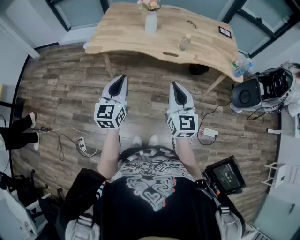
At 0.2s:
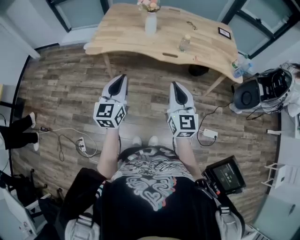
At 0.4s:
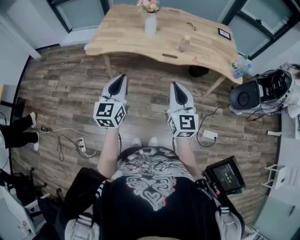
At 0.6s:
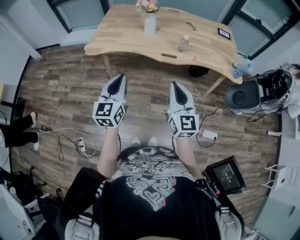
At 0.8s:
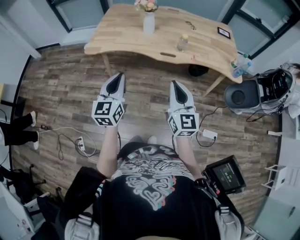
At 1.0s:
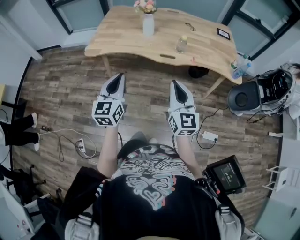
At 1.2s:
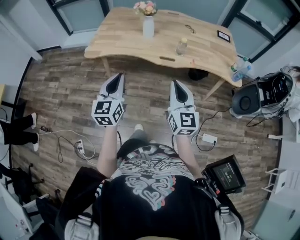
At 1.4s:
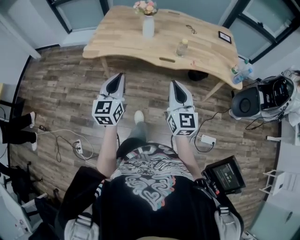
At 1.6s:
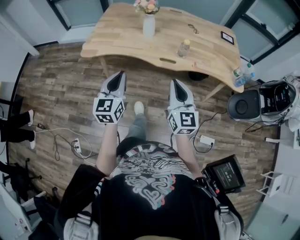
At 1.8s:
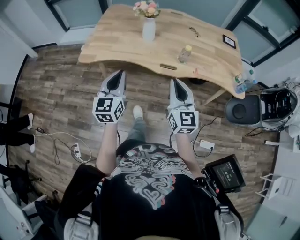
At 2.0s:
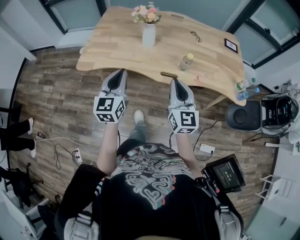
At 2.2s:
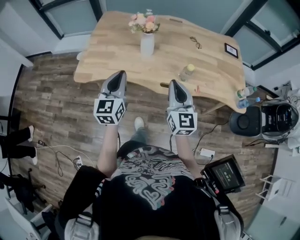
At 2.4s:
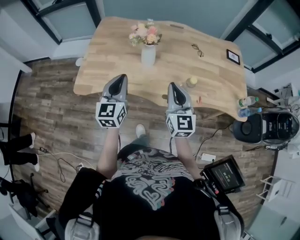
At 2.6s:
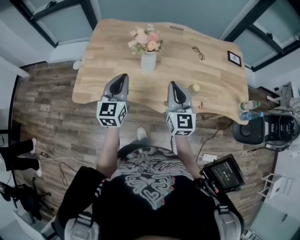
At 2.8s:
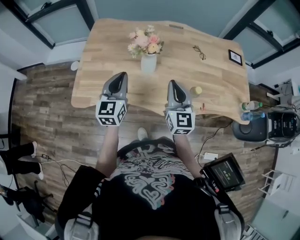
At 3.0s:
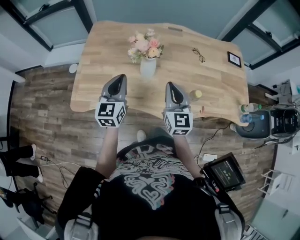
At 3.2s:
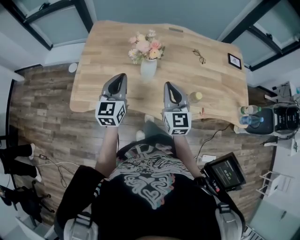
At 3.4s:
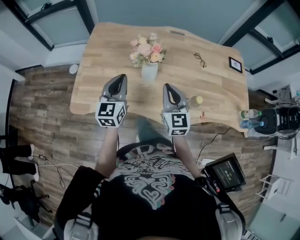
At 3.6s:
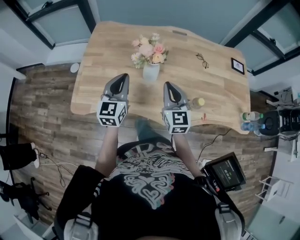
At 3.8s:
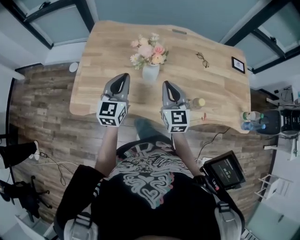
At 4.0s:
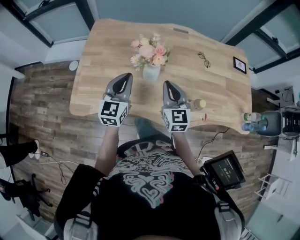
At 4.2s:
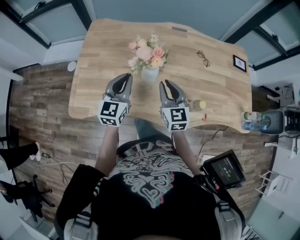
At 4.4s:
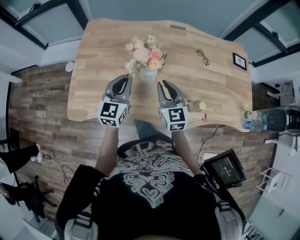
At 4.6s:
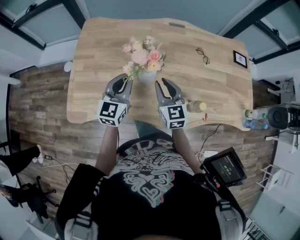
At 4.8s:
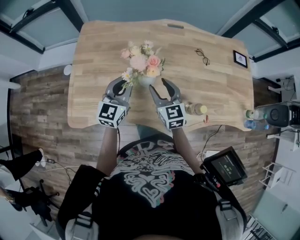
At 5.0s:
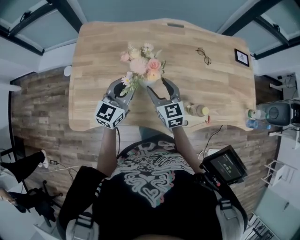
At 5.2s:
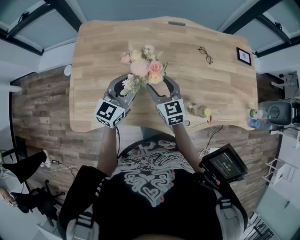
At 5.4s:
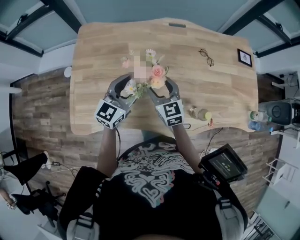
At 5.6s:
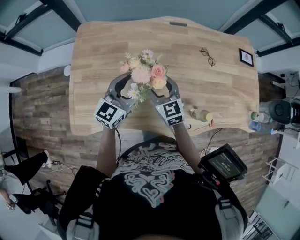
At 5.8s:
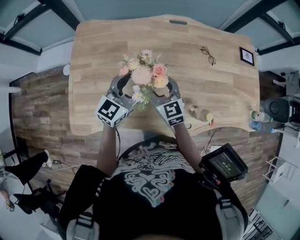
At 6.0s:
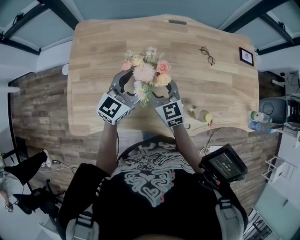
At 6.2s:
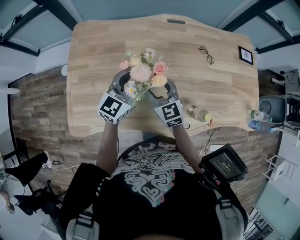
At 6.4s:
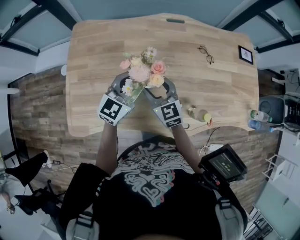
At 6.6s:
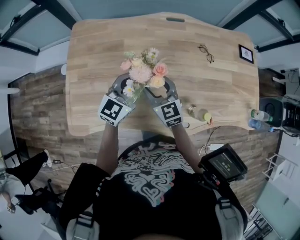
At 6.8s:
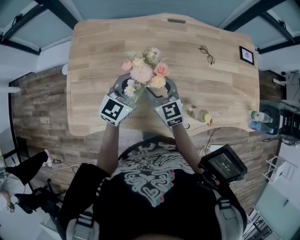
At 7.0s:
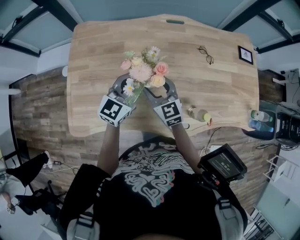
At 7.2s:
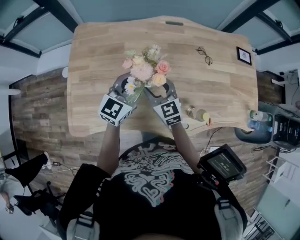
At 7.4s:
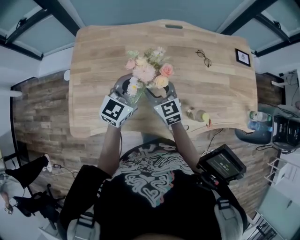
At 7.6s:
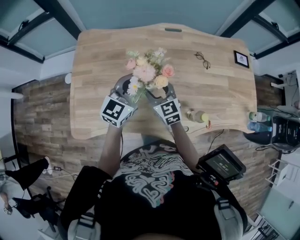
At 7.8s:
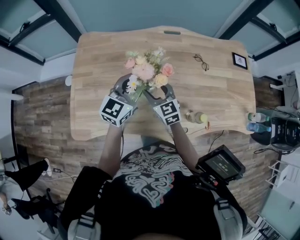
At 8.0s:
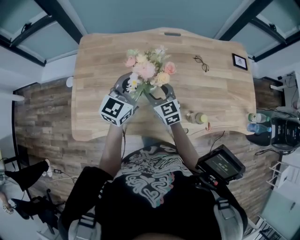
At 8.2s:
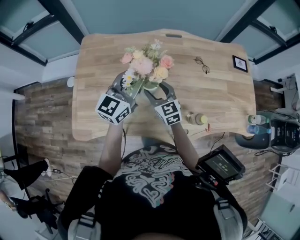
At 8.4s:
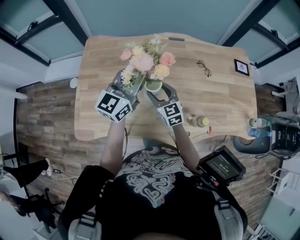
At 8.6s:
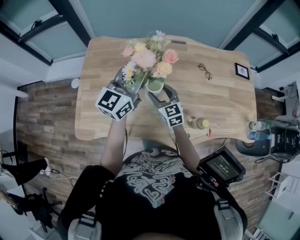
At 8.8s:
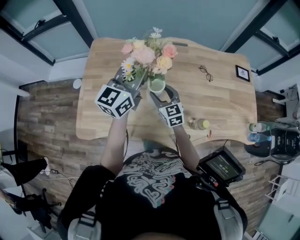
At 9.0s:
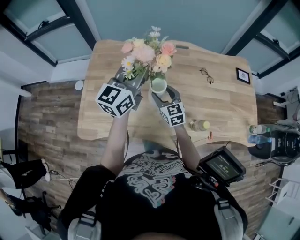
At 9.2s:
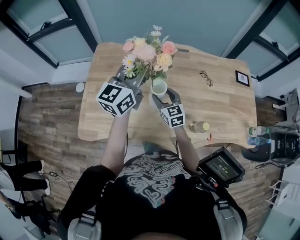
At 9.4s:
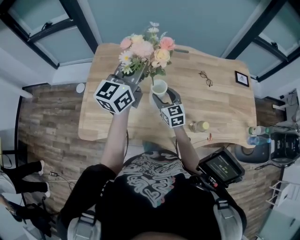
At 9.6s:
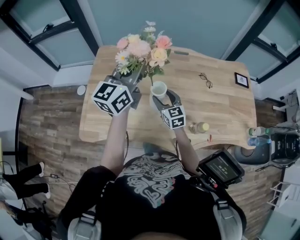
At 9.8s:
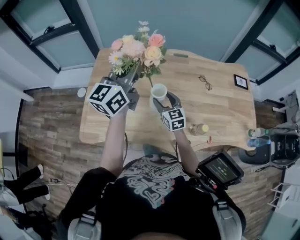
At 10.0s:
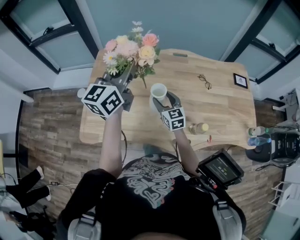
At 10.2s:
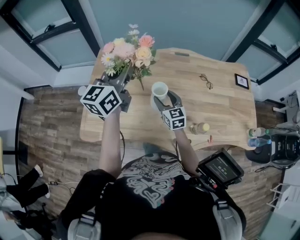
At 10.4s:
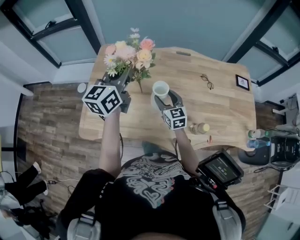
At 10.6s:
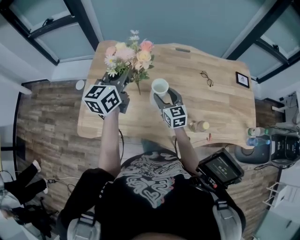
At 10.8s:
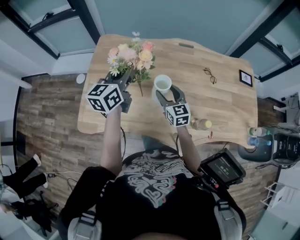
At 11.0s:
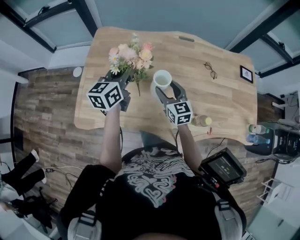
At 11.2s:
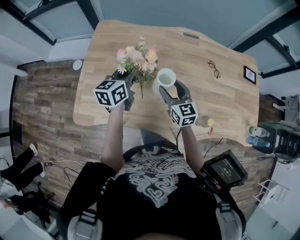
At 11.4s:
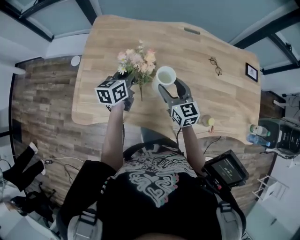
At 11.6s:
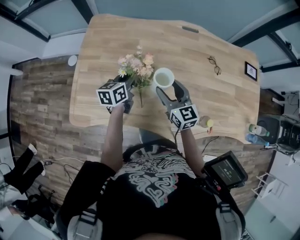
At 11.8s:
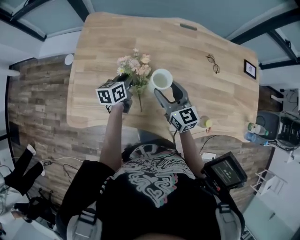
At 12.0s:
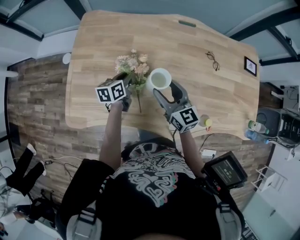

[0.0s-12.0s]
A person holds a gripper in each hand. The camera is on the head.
0.0s to 1.6s: Both grippers travel together forward, approximately 10 cm.
1.6s to 3.0s: The pair of grippers is taken forward, about 40 cm.
3.0s to 4.4s: The right gripper is displaced forward and downward by about 10 cm, while the left gripper goes about 10 cm forward.
4.4s to 6.0s: The right gripper heads forward and to the left, covering about 10 cm, and opens. Meanwhile the left gripper heads forward and to the right, covering about 10 cm, rotates some 30 degrees, and opens up.
6.0s to 7.6s: The left gripper closes.
7.6s to 9.0s: The left gripper travels upward by some 15 cm.
9.0s to 10.4s: The left gripper travels to the left by some 5 cm.
10.4s to 12.0s: The left gripper heads downward, covering approximately 35 cm, and tilts its fingers approximately 30 degrees downward.

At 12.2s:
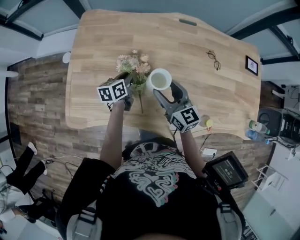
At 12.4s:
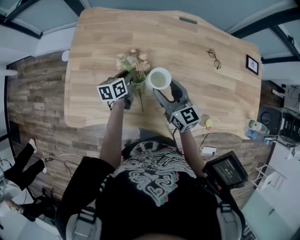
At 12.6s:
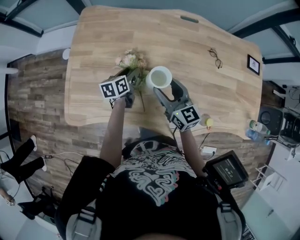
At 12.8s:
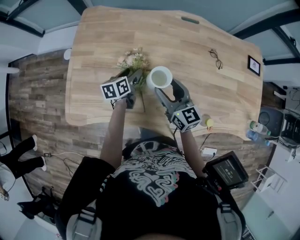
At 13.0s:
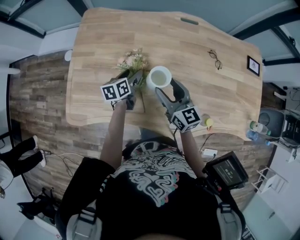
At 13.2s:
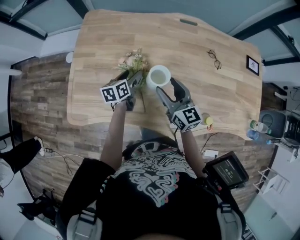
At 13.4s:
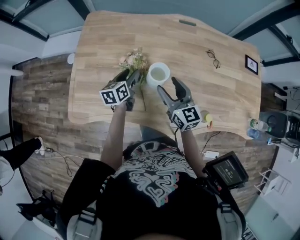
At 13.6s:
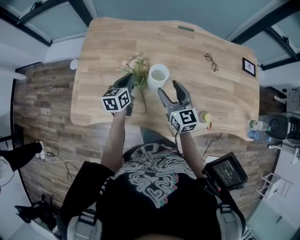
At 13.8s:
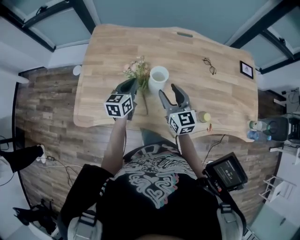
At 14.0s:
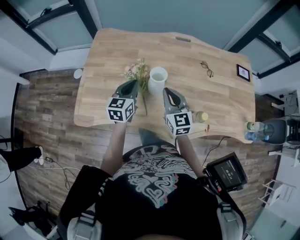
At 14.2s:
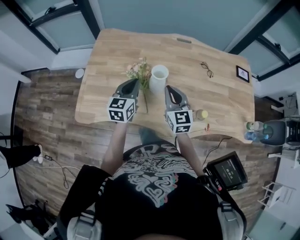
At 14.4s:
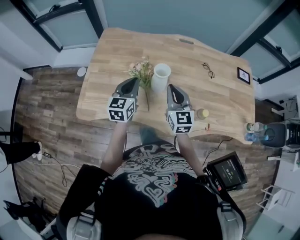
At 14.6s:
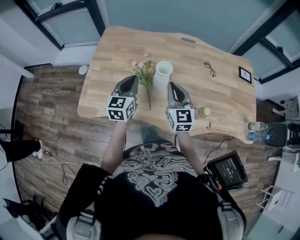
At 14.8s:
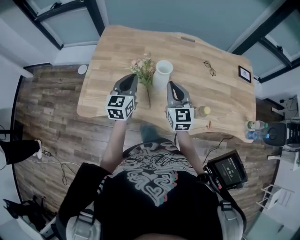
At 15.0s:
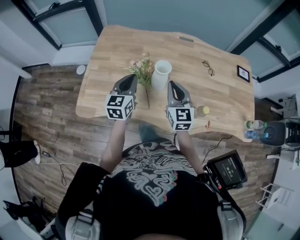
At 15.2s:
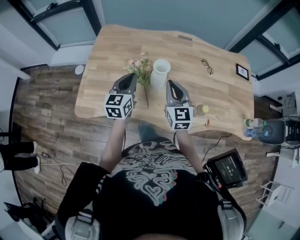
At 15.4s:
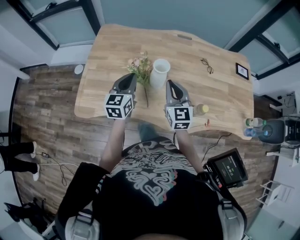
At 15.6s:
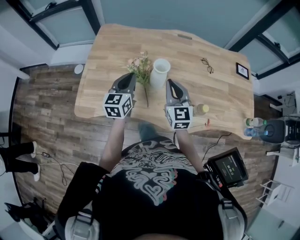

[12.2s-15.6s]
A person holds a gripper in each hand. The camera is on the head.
12.2s to 13.8s: The right gripper heads backward, covering some 5 cm. Meanwhile the left gripper shifts about 15 cm upward and backward, changes its angle by roughly 20 degrees, and opens, then closes again.
13.8s to 15.6s: The right gripper travels upward by approximately 5 cm, and closes up, while the left gripper is displaced upward and backward by some 10 cm.

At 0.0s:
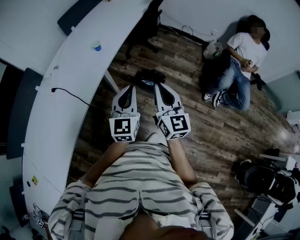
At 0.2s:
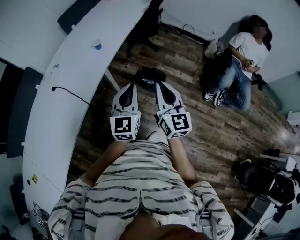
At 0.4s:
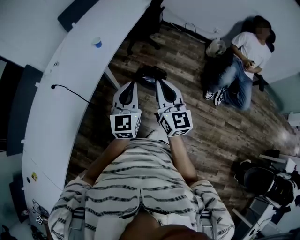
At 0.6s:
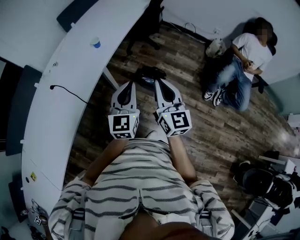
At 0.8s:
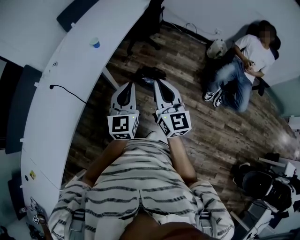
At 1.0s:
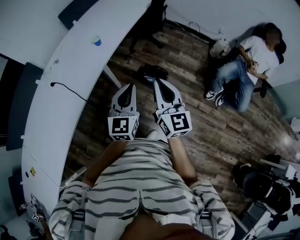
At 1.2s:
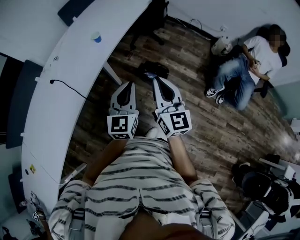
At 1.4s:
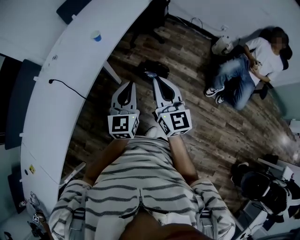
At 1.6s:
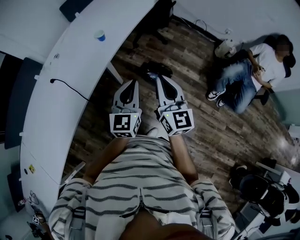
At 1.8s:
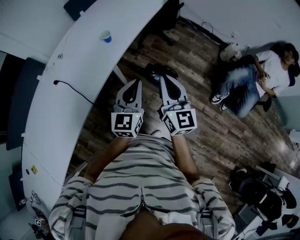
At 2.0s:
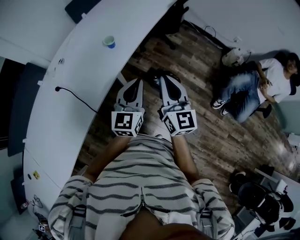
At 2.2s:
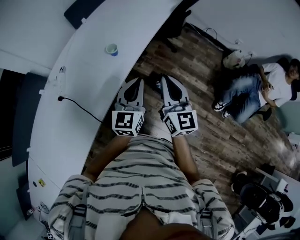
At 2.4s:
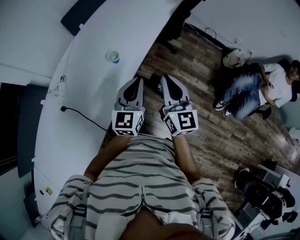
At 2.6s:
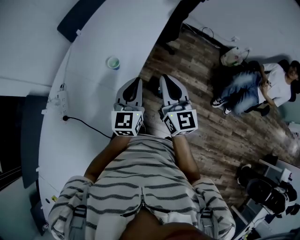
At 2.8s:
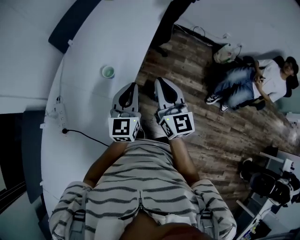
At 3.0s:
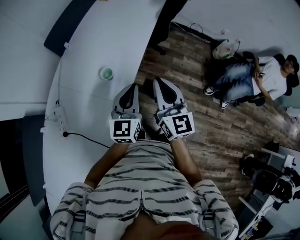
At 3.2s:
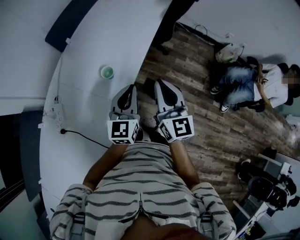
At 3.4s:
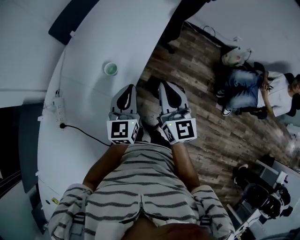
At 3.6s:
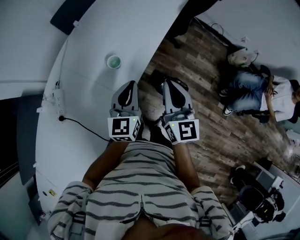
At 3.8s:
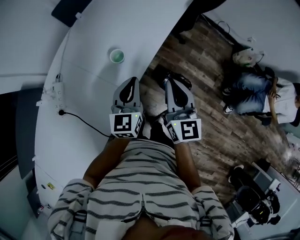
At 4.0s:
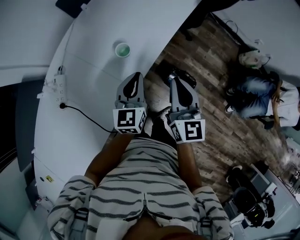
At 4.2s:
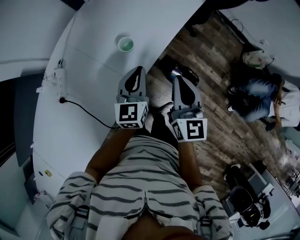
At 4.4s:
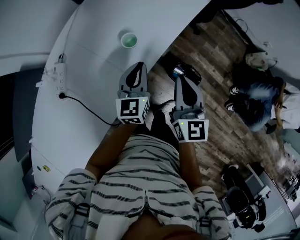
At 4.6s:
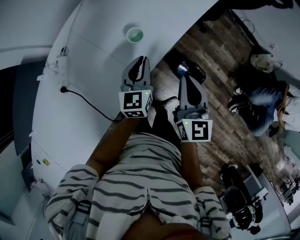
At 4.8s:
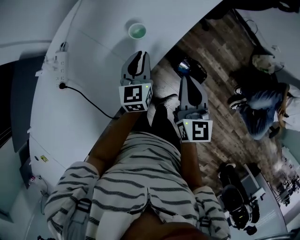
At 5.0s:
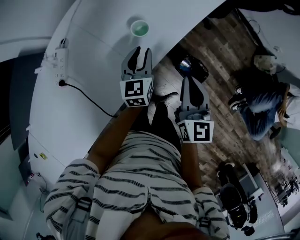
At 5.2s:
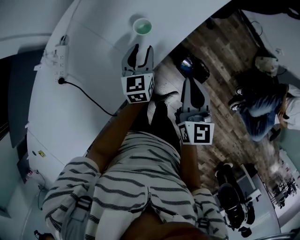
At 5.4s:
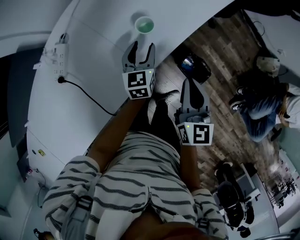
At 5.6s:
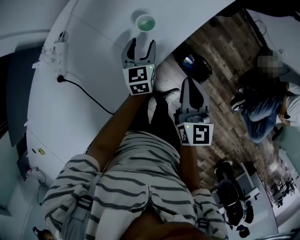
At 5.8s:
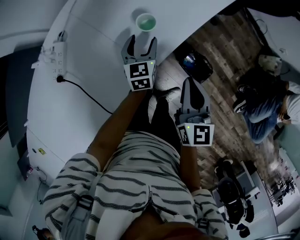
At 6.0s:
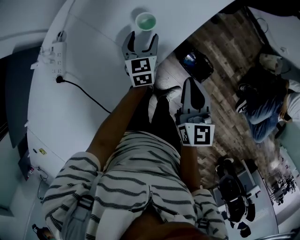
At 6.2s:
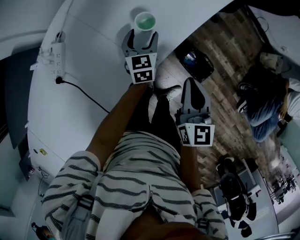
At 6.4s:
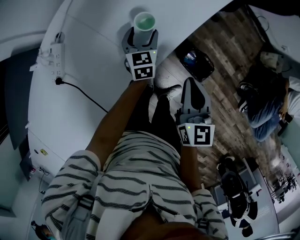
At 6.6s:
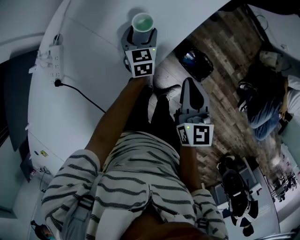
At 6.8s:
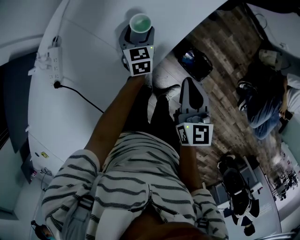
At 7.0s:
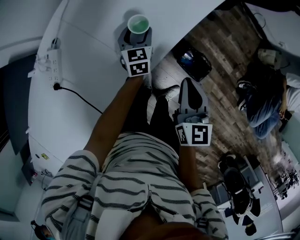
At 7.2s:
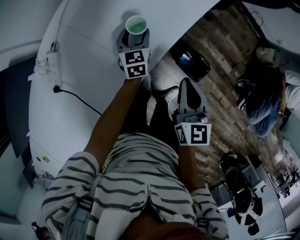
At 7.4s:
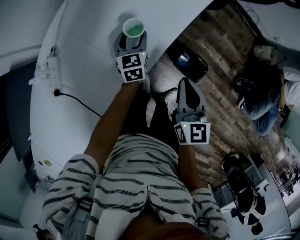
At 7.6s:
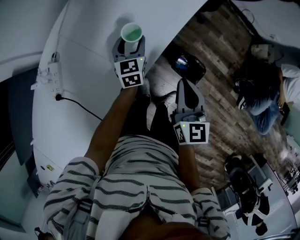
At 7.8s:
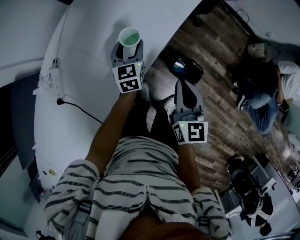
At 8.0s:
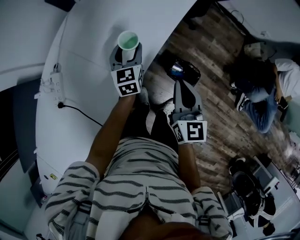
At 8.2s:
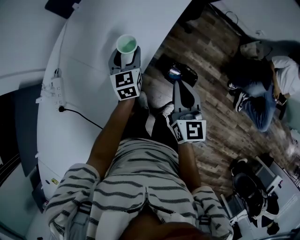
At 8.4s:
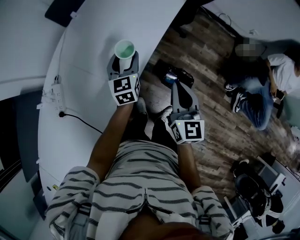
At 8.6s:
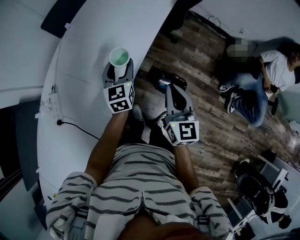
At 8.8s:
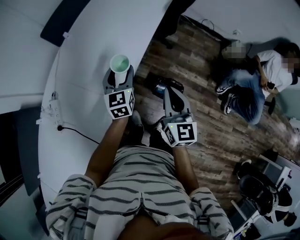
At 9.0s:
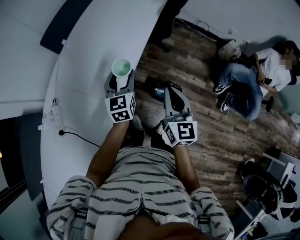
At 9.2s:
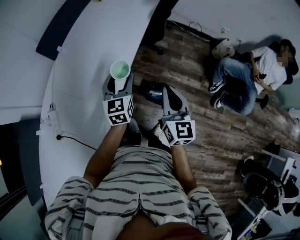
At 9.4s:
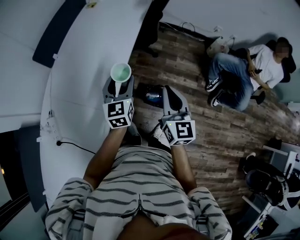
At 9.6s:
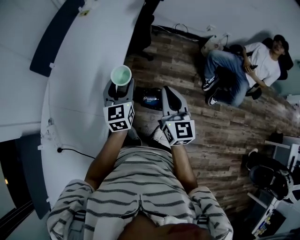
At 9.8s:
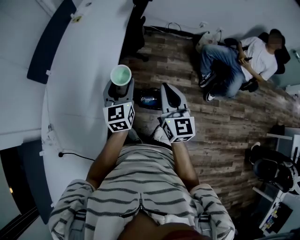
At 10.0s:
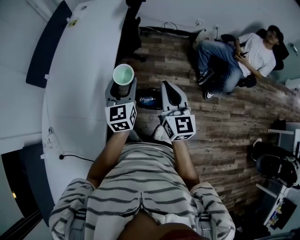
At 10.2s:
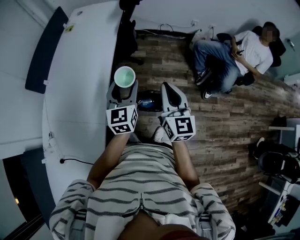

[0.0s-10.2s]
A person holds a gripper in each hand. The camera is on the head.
0.0s to 1.4s: The left gripper ends up approximately 5 cm from where it was.
1.4s to 3.0s: The grippers both shift forward and to the left by about 35 cm.
3.0s to 4.4s: The left gripper goes roughly 15 cm downward and to the left, and swivels roughly 20 degrees. Meanwhile the right gripper moves downward, approximately 10 cm.
4.4s to 5.8s: The right gripper travels downward by approximately 5 cm, while the left gripper travels downward, forward and to the left by approximately 15 cm, and opens its fingers.
5.8s to 7.2s: The left gripper travels forward by approximately 5 cm.
7.2s to 8.8s: The left gripper heads upward and to the right, covering about 25 cm, while the right gripper travels upward and to the right by about 15 cm.
8.8s to 10.2s: The two grippers go about 20 cm to the right and upward. The left gripper swivels some 20 degrees.
